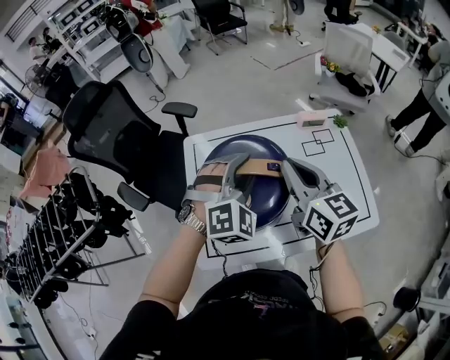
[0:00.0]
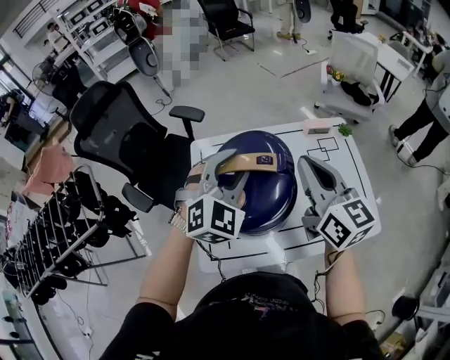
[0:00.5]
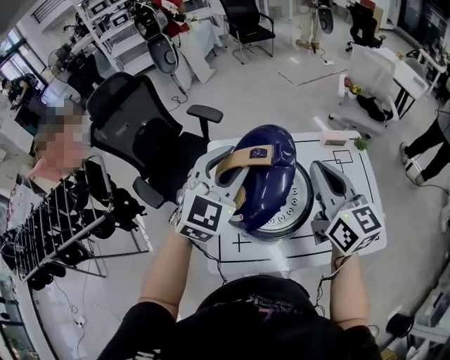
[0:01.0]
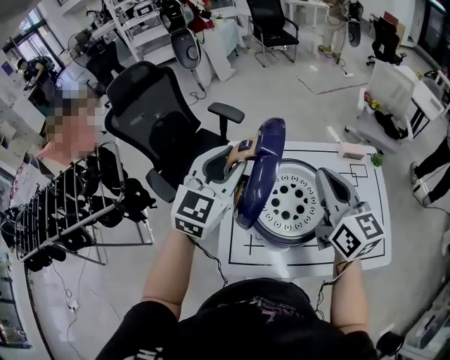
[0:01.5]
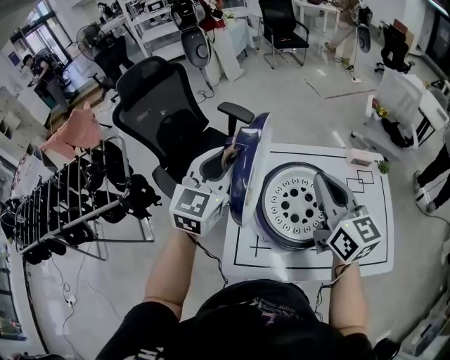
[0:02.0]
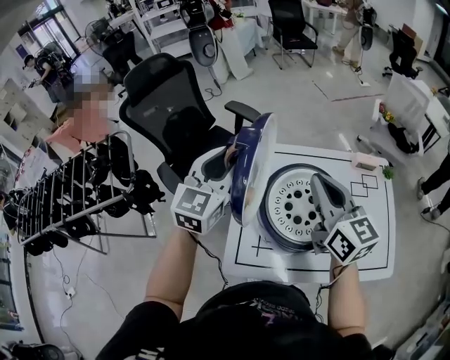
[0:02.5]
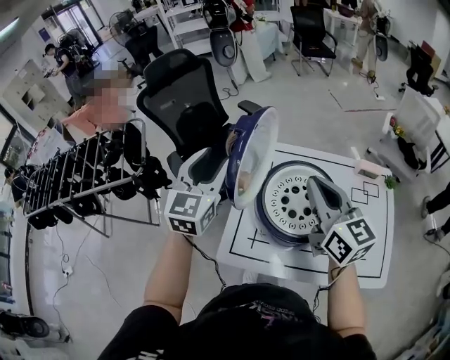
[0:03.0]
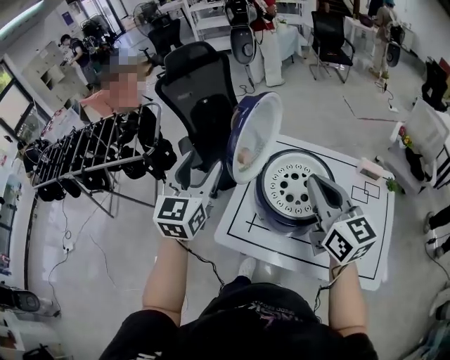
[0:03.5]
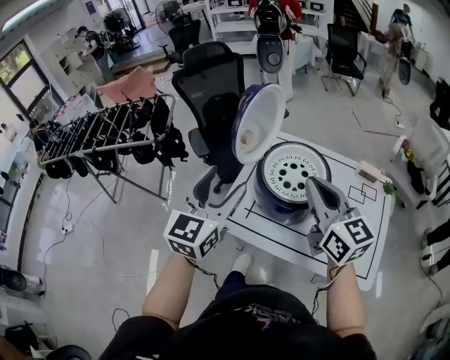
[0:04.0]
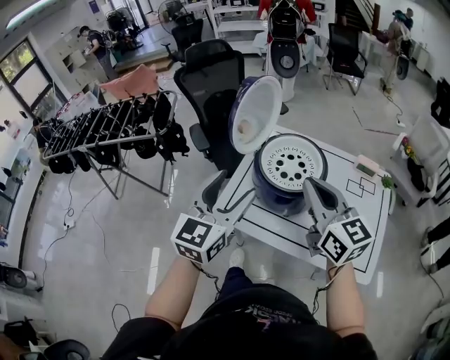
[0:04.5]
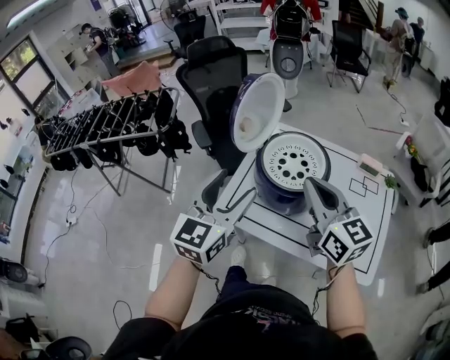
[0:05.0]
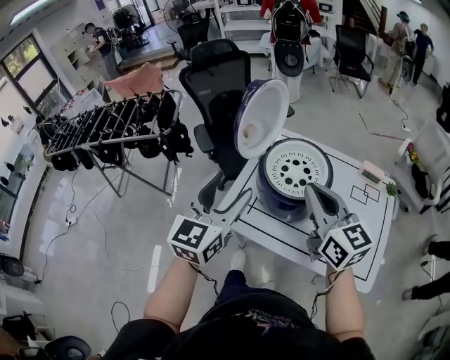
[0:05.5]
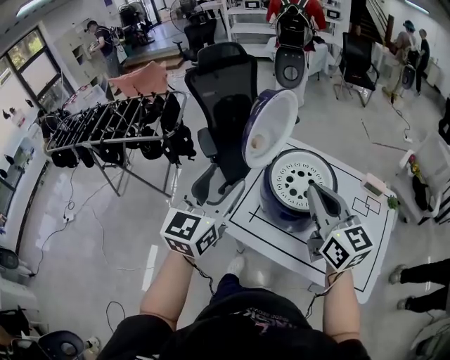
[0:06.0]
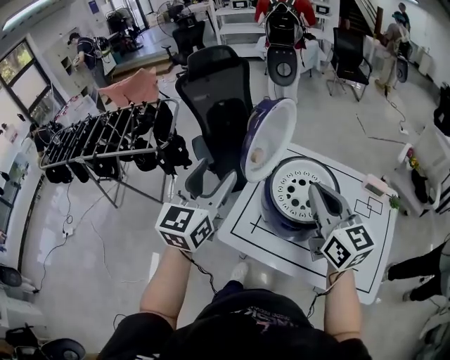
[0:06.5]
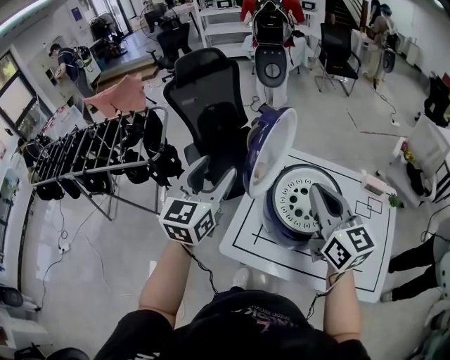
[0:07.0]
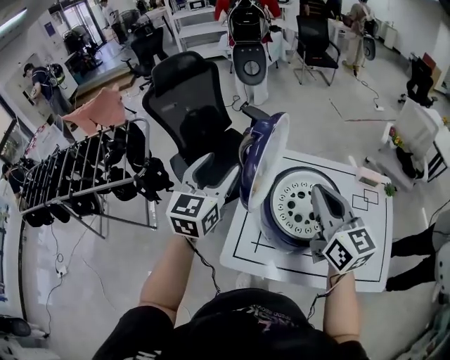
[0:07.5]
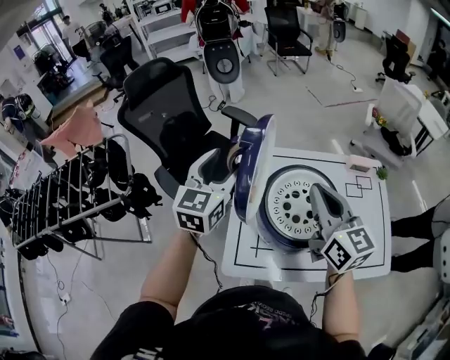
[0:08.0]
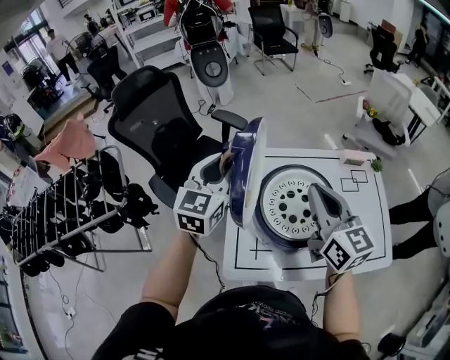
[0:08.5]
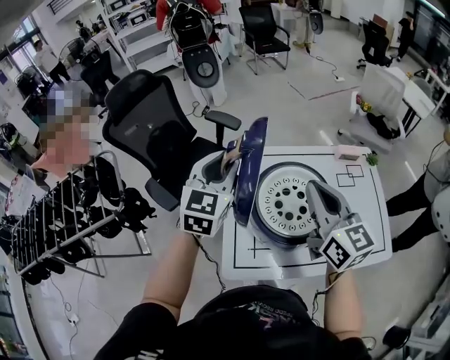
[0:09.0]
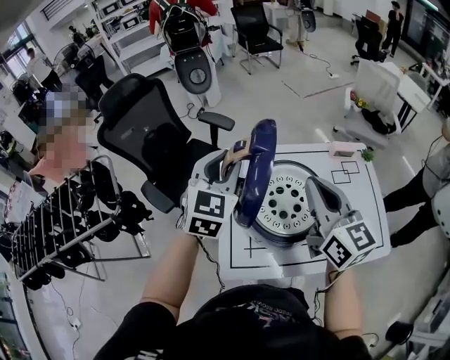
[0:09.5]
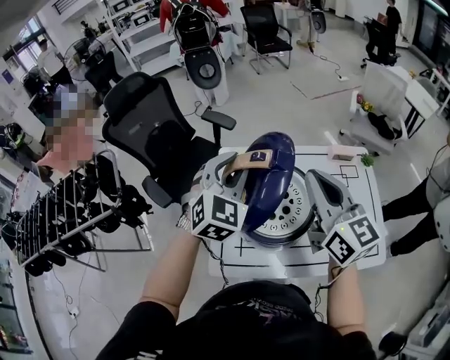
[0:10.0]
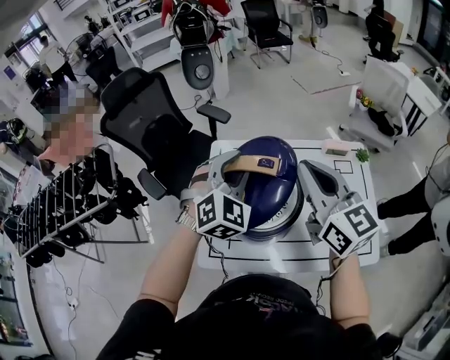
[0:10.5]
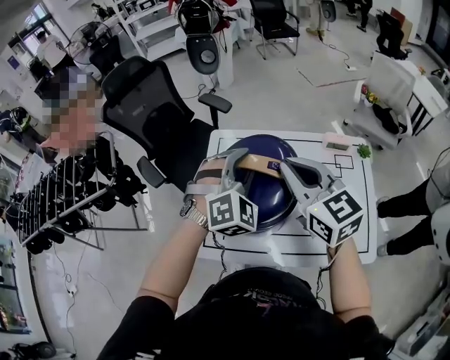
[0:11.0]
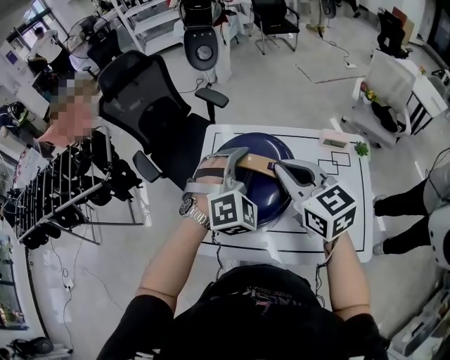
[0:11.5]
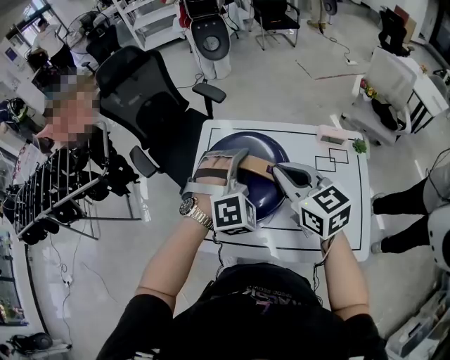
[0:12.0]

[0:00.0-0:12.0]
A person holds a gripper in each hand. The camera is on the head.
0:00.0 to 0:02.0: The right gripper travels to the left by approximately 10 cm; the left gripper moves to the left, roughly 25 cm, and rolls counterclockwise, seen from behind, by approximately 50 degrees.
0:02.0 to 0:04.0: The right gripper travels backward by approximately 15 cm, and rotates roughly 20 degrees; the left gripper heads backward, covering some 25 cm, turns by approximately 20 degrees, and opens its fingers.
0:06.0 to 0:08.0: The right gripper goes roughly 10 cm forward, and changes its angle by roughly 30 degrees. The left gripper travels forward by about 25 cm, and rotates roughly 20 degrees.
0:08.0 to 0:10.0: The left gripper shifts some 15 cm to the right, turns by roughly 40 degrees, and closes its fingers. The right gripper moves to the right, some 5 cm.
0:10.0 to 0:12.0: The right gripper travels downward by roughly 10 cm, and swivels roughly 30 degrees; the left gripper goes about 15 cm to the right and downward, and changes its angle by about 30 degrees.

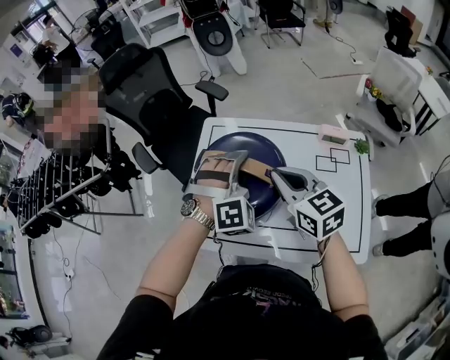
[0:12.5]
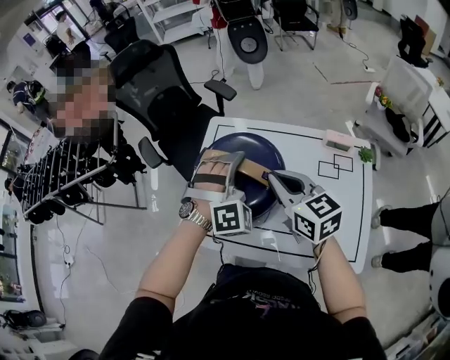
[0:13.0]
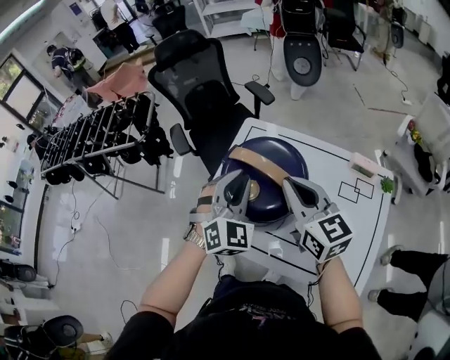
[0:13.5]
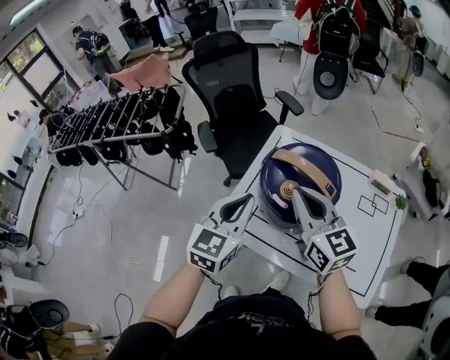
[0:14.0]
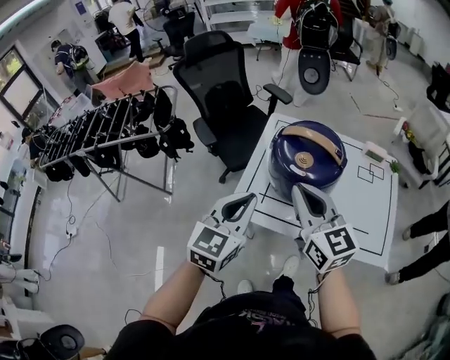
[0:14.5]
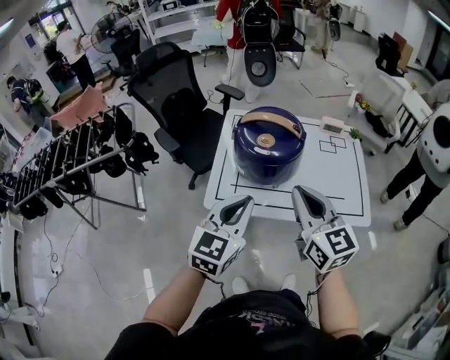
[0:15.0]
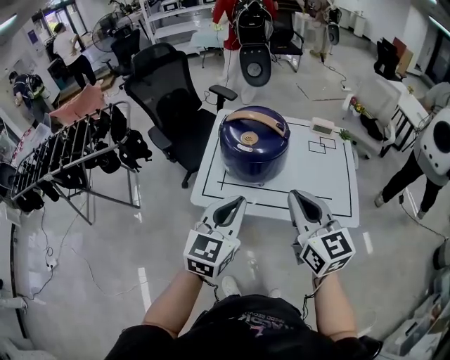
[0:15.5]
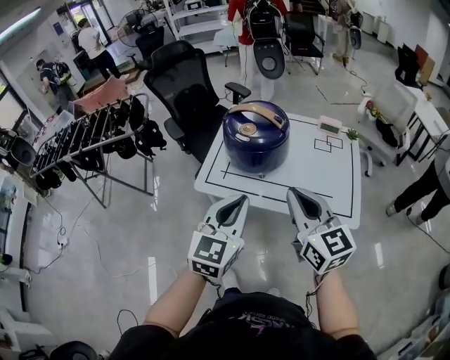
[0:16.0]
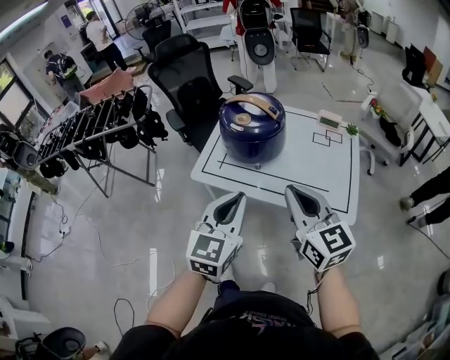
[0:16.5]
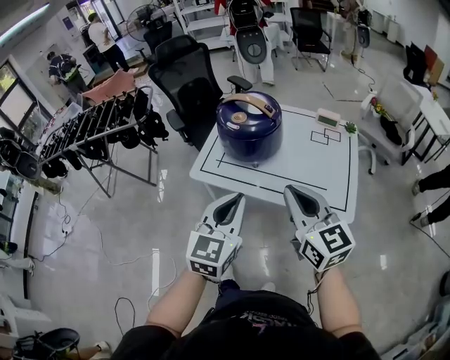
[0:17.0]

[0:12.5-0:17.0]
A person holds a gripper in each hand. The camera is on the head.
0:12.5 to 0:14.5: The grippers both shift to the left and backward by roughly 25 cm. The left gripper twists approximately 70 degrees counterclockwise, seen from behind, and closes its fingers.
0:14.5 to 0:17.0: Both grippers travel together to the right and backward, approximately 25 cm.

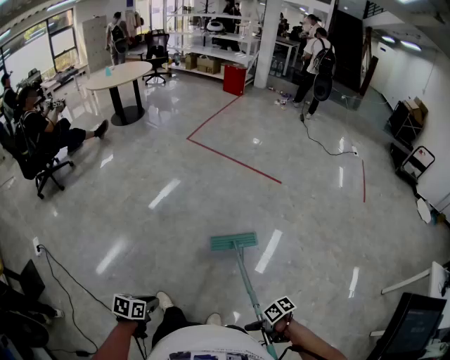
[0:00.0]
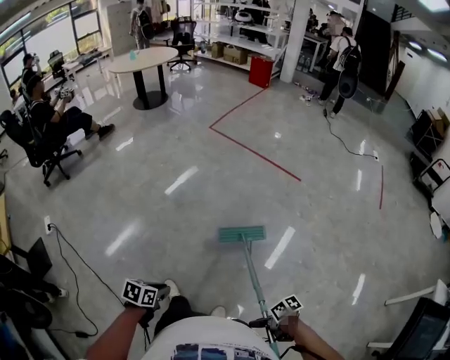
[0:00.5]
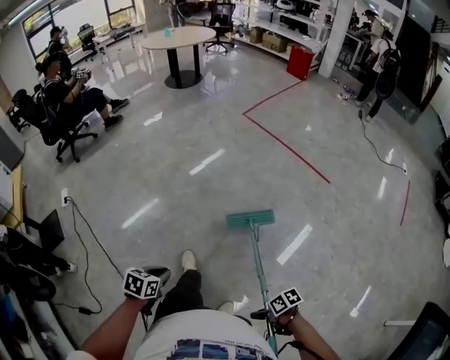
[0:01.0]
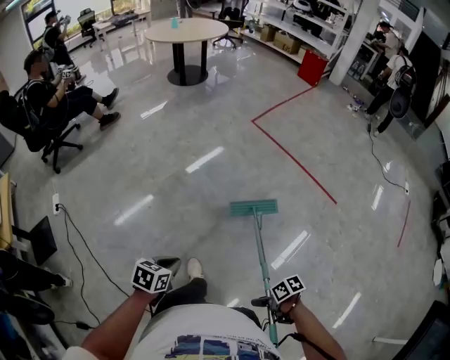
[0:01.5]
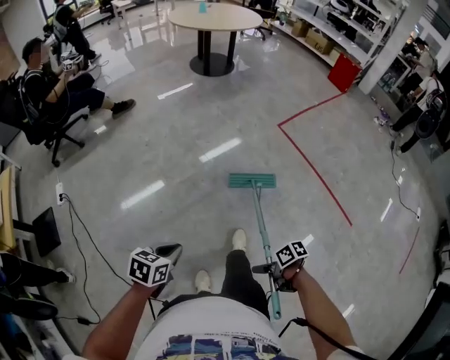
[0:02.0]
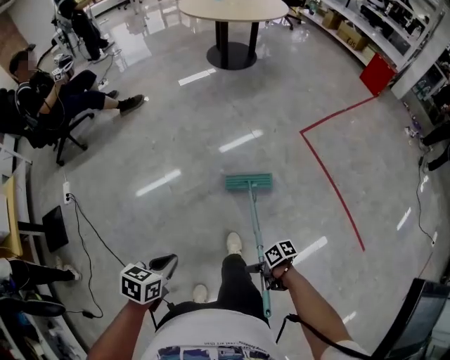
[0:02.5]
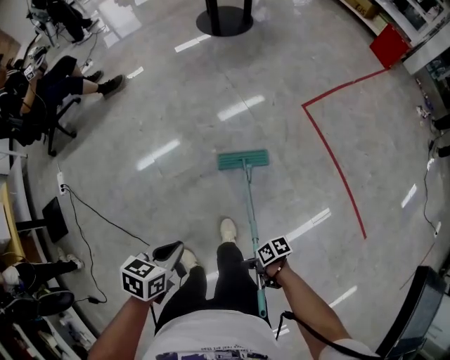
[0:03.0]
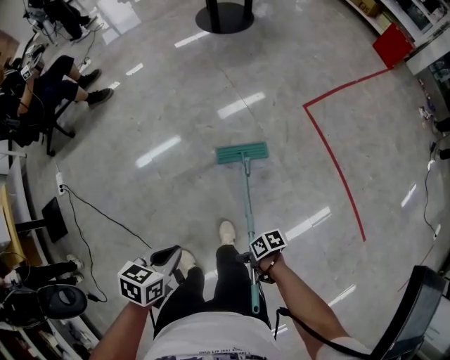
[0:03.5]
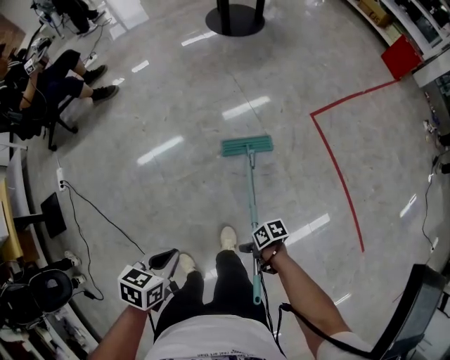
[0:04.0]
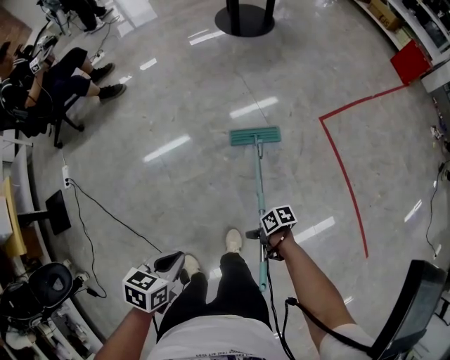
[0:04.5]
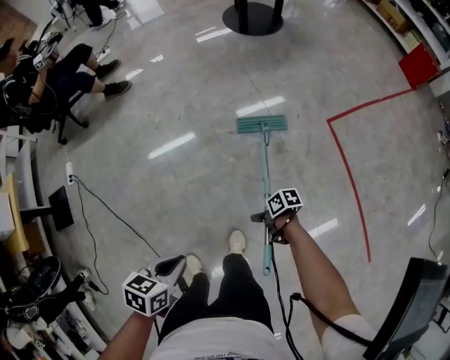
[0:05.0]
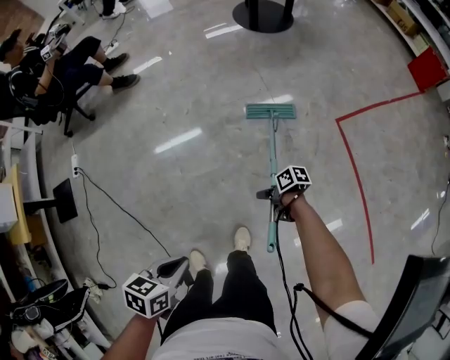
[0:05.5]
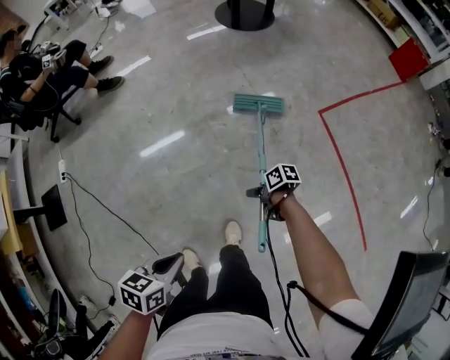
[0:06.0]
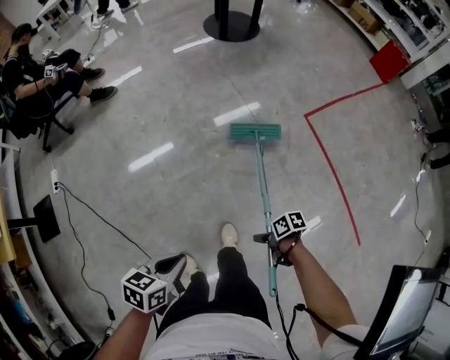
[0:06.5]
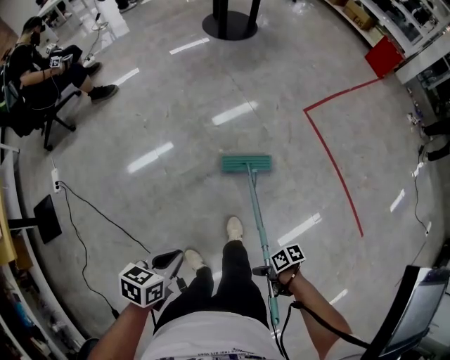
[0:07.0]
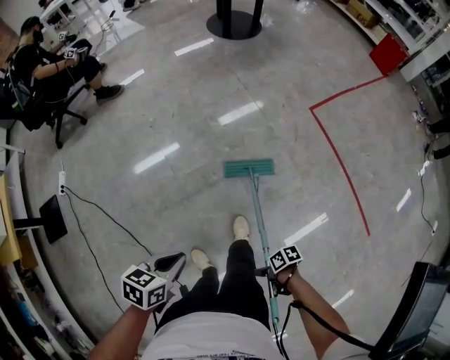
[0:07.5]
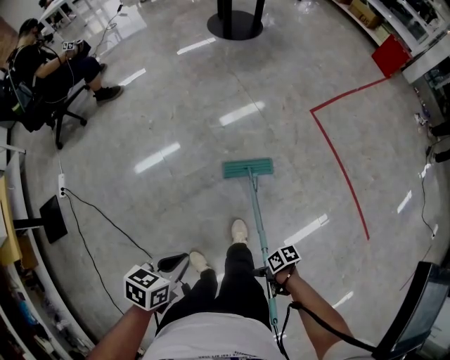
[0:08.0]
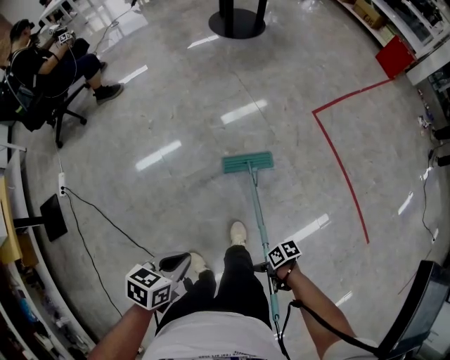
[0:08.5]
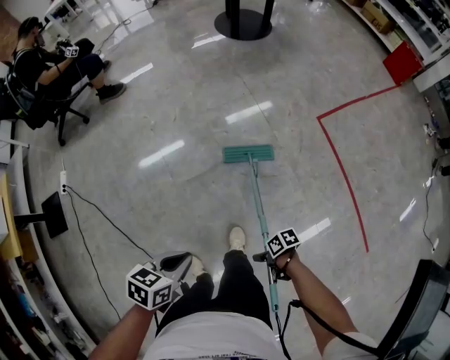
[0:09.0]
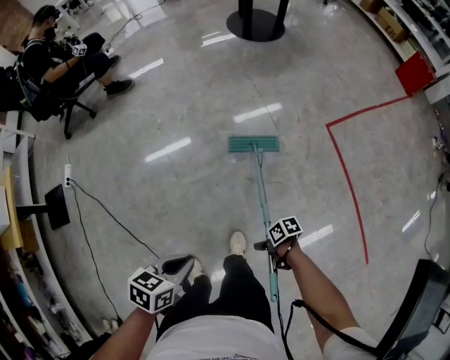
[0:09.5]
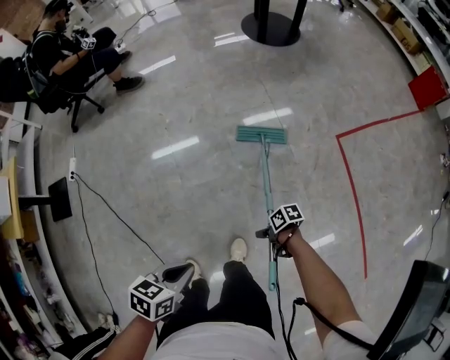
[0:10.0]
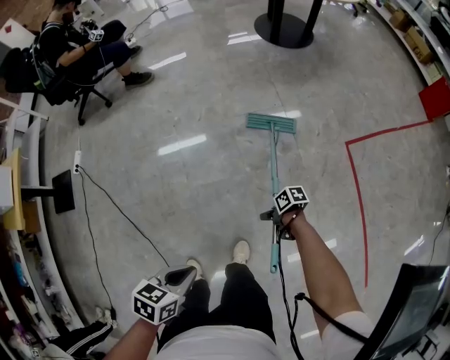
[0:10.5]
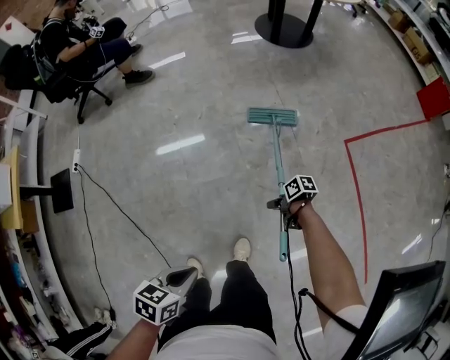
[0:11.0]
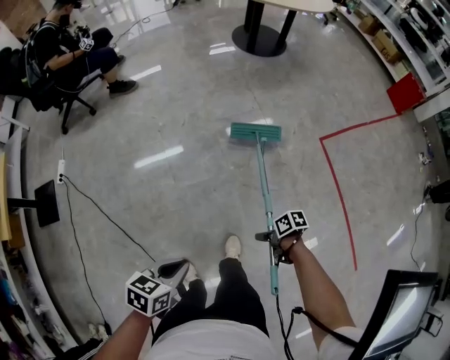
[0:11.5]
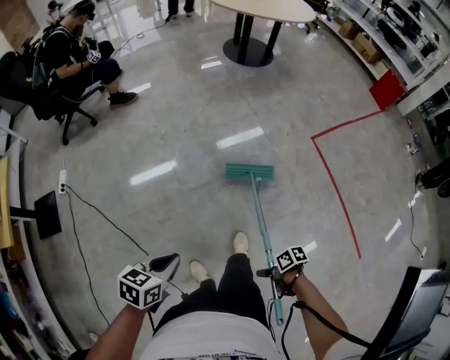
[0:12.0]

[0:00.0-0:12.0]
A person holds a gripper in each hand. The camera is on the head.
0:00.0 to 0:02.0: The left gripper changes place by some 50 cm.
0:02.0 to 0:04.0: The left gripper moves some 25 cm.
0:06.0 to 0:08.0: The left gripper moves approximately 5 cm.
0:08.0 to 0:10.0: The left gripper changes place by about 10 cm.
0:10.0 to 0:12.0: The left gripper ends up roughly 15 cm from where it was.
